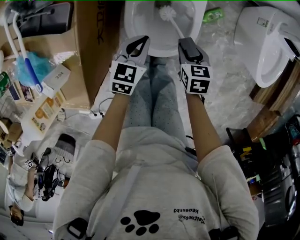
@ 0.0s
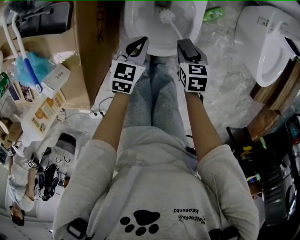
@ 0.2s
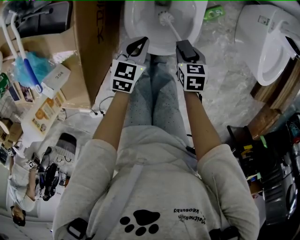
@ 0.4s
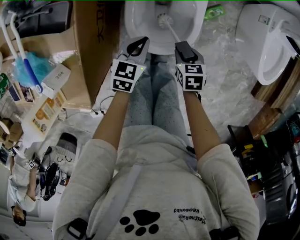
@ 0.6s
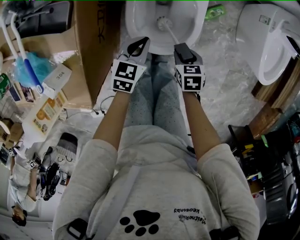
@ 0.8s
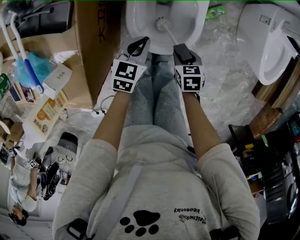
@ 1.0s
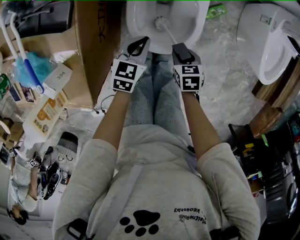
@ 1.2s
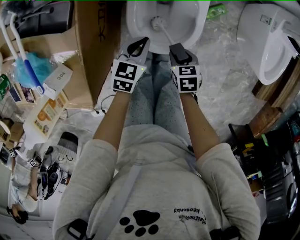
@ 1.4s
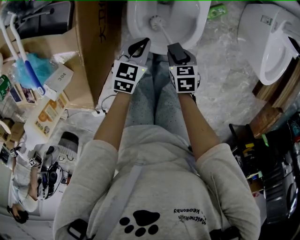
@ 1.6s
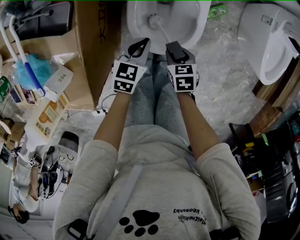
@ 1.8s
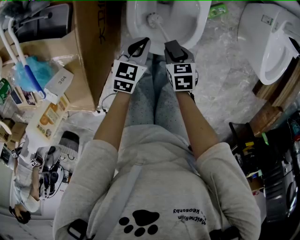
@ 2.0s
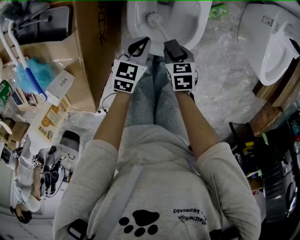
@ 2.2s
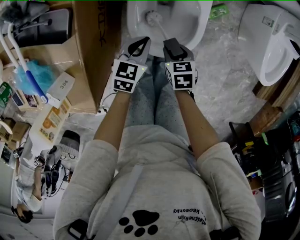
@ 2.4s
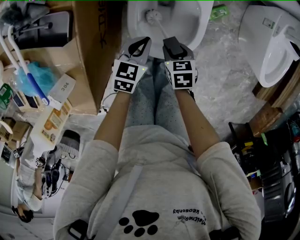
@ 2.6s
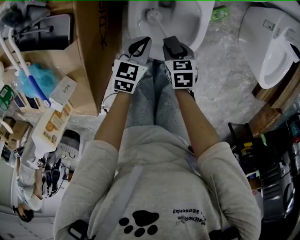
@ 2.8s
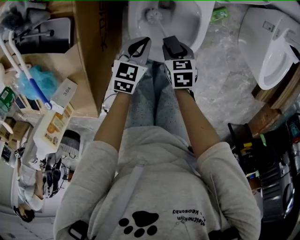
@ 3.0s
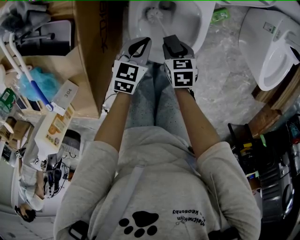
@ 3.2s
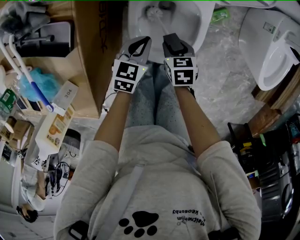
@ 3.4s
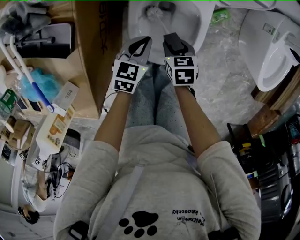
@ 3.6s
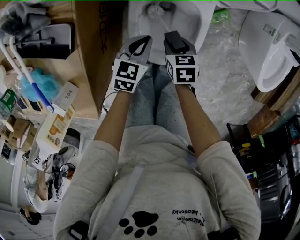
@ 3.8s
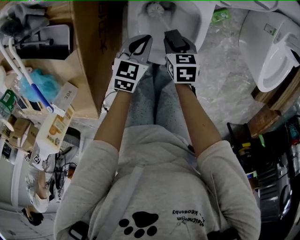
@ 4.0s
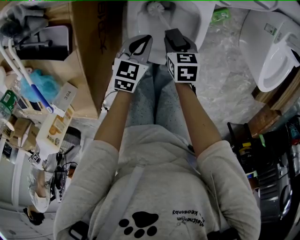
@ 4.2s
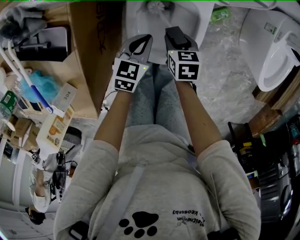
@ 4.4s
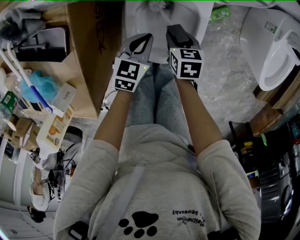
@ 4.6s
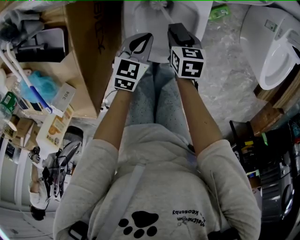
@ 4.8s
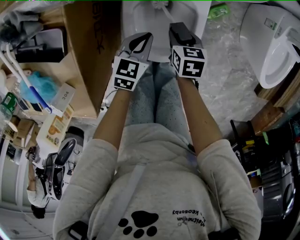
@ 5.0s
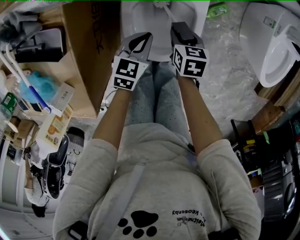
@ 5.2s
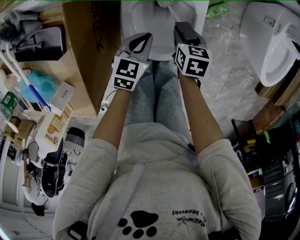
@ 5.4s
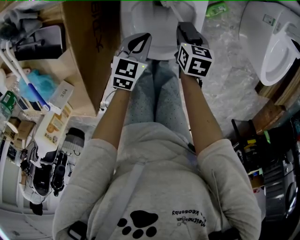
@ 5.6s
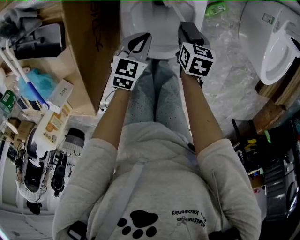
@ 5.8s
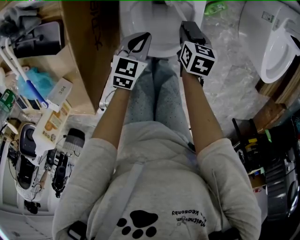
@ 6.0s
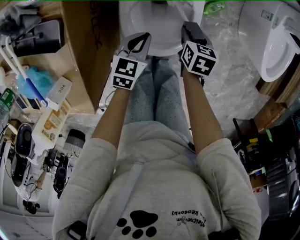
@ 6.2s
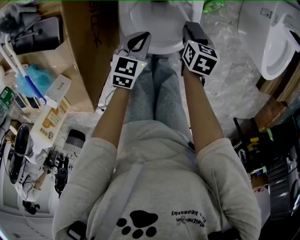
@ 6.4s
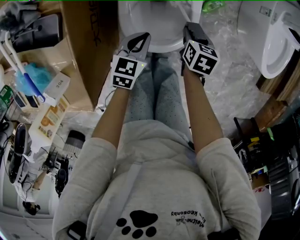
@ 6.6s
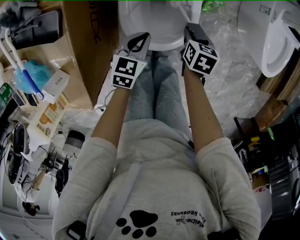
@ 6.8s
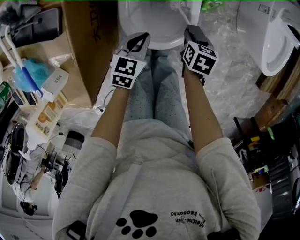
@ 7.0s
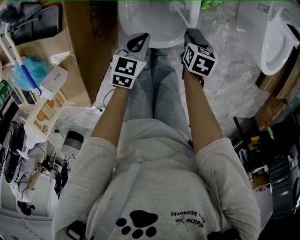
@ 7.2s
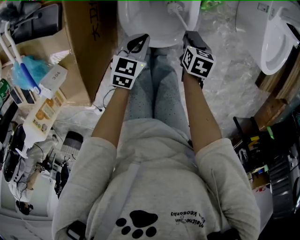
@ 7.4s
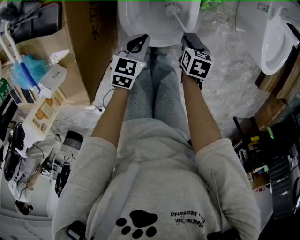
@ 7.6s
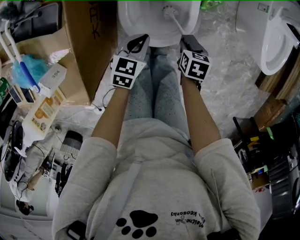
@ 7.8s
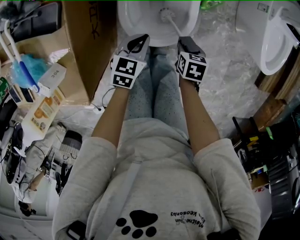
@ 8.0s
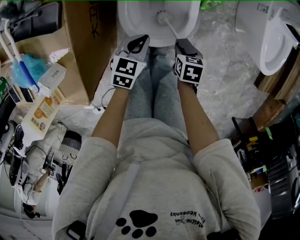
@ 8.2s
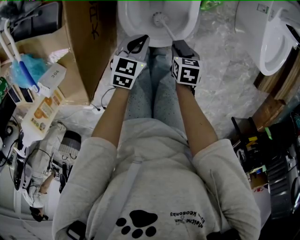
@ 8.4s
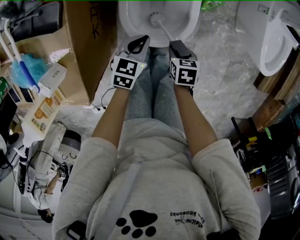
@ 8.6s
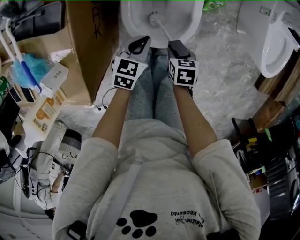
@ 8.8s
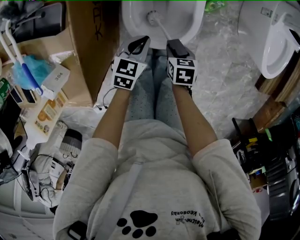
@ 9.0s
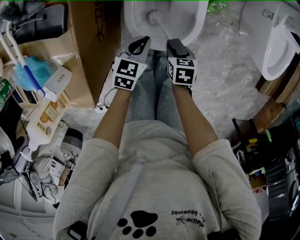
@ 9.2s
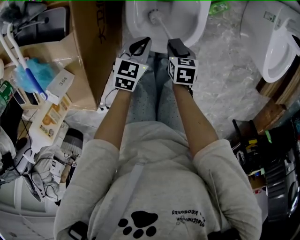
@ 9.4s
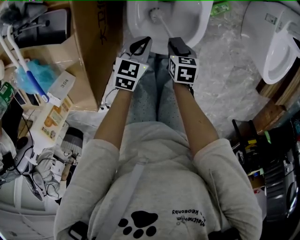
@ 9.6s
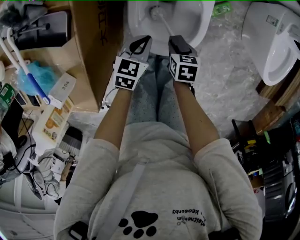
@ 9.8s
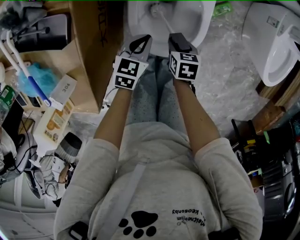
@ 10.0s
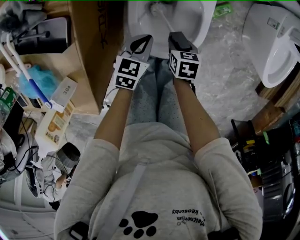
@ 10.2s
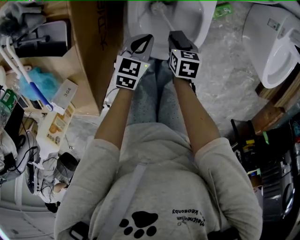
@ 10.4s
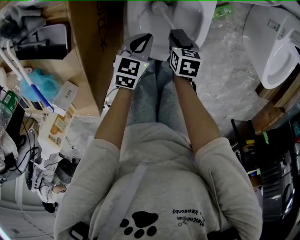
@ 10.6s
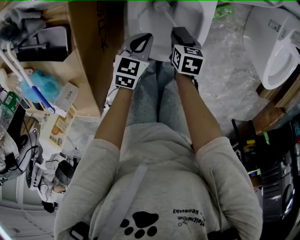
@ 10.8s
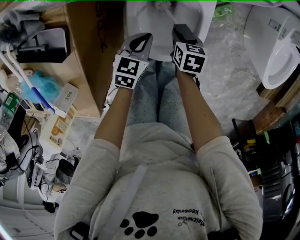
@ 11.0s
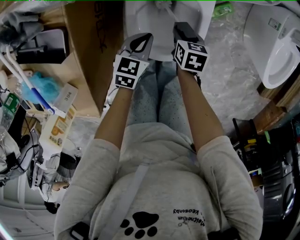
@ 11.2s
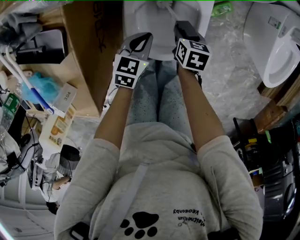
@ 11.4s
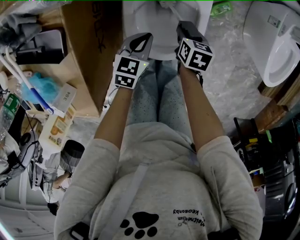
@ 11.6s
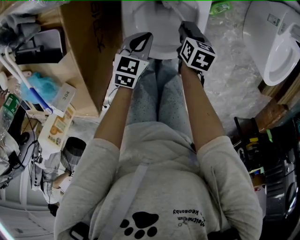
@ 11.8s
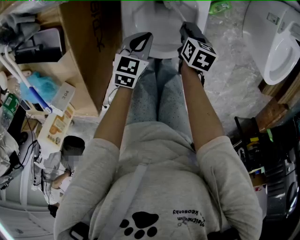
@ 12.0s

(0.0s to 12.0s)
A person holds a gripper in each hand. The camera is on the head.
0.0s - 1.6s: The right gripper is displaced backward and to the left by roughly 10 cm.
1.6s - 3.0s: The right gripper moves forward, roughly 10 cm, while the left gripper is displaced forward by about 5 cm.
3.0s - 4.4s: The right gripper is displaced forward by about 5 cm.
4.4s - 6.0s: The right gripper travels to the right by approximately 10 cm.
6.0s - 7.6s: The right gripper heads backward and to the right, covering about 10 cm; the left gripper travels backward by some 5 cm.
7.6s - 9.0s: The right gripper goes about 5 cm to the left.
9.0s - 10.4s: The two grippers go approximately 10 cm forward.
10.4s - 12.0s: The right gripper moves to the right and forward, approximately 10 cm.

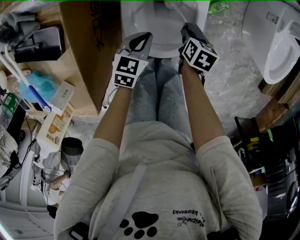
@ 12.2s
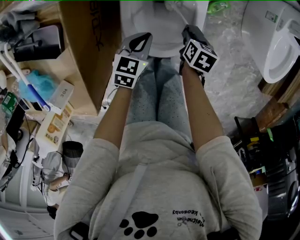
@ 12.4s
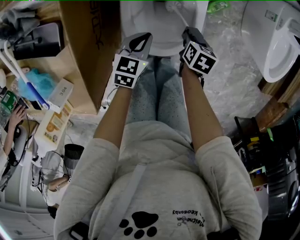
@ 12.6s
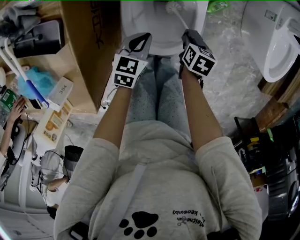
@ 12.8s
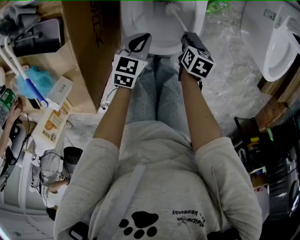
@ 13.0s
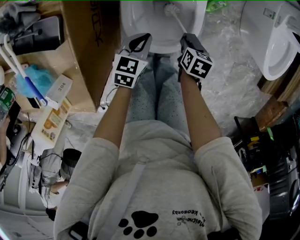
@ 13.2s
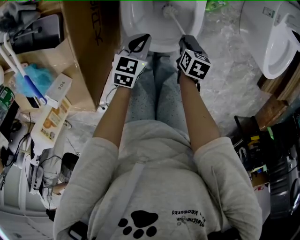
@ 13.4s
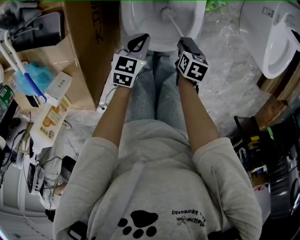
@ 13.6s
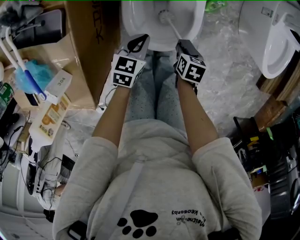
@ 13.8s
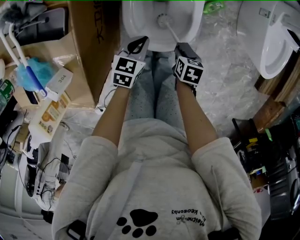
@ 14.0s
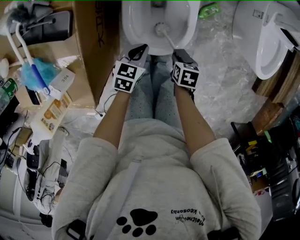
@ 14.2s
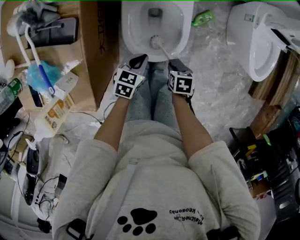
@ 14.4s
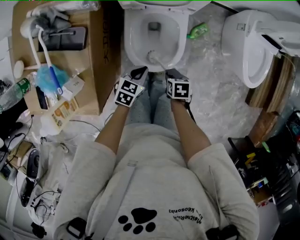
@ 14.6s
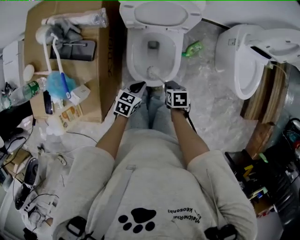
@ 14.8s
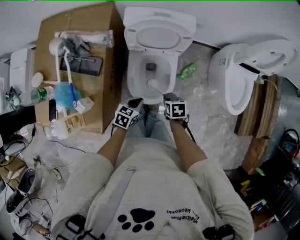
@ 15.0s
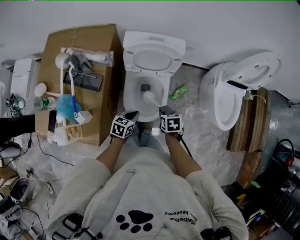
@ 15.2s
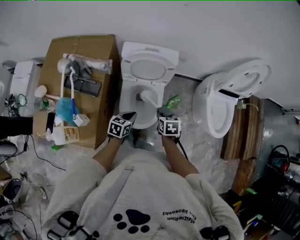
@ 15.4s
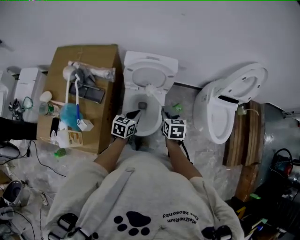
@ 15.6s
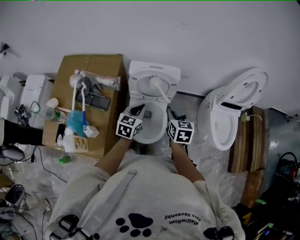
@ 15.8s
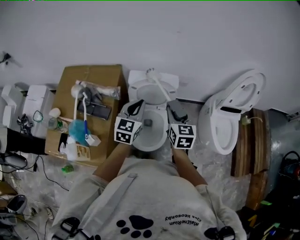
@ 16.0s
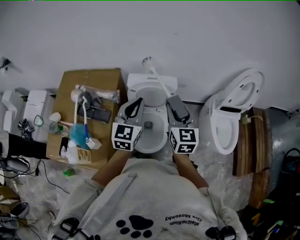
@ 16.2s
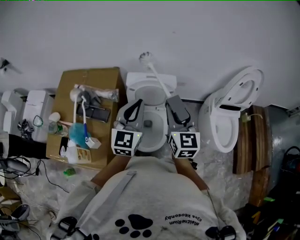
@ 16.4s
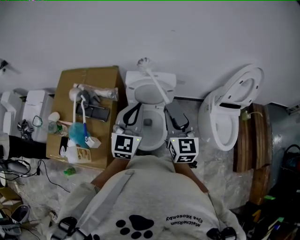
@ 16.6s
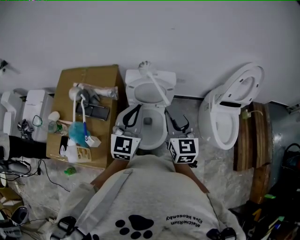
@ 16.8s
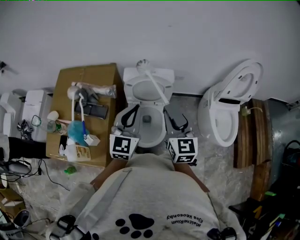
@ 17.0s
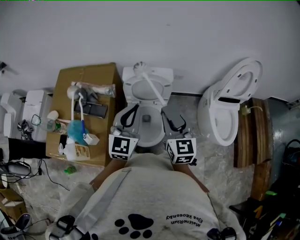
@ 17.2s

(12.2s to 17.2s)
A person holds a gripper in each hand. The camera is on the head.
12.2s - 13.8s: The left gripper heads backward, covering about 5 cm. Meanwhile the right gripper goes approximately 10 cm backward.
13.8s - 15.6s: The grippers both shift upward by about 30 cm. The right gripper turns by roughly 30 degrees.
15.6s - 17.2s: Both grippers move upward, some 25 cm. The left gripper changes its angle by roughly 40 degrees. Meanwhile the right gripper tilts its fingers some 30 degrees upward.

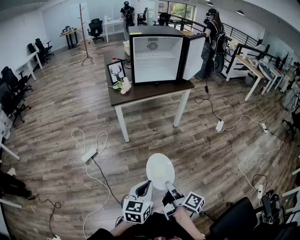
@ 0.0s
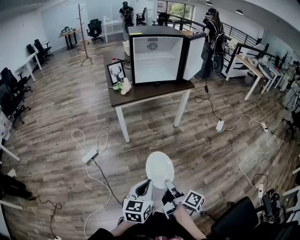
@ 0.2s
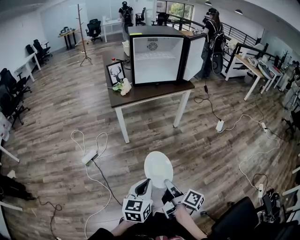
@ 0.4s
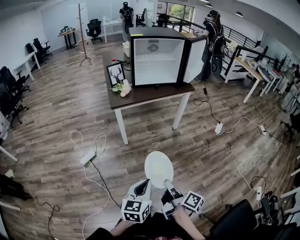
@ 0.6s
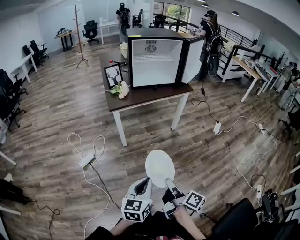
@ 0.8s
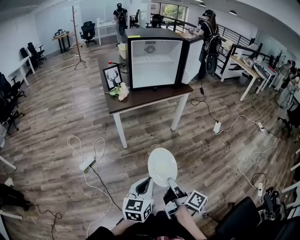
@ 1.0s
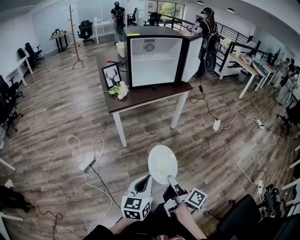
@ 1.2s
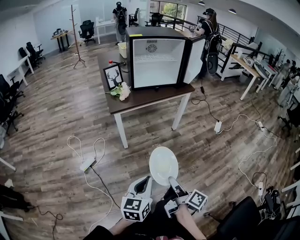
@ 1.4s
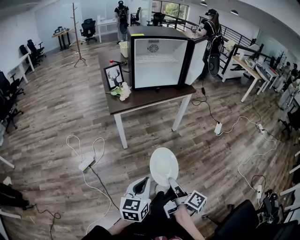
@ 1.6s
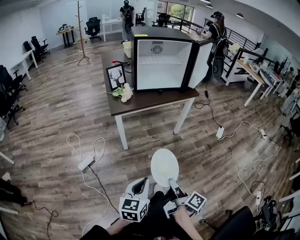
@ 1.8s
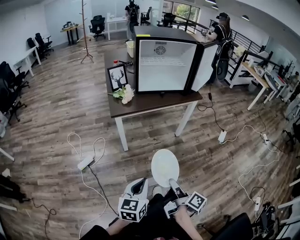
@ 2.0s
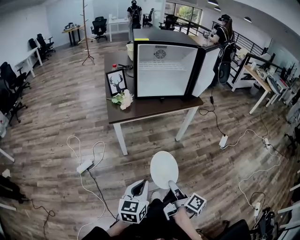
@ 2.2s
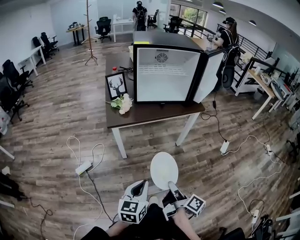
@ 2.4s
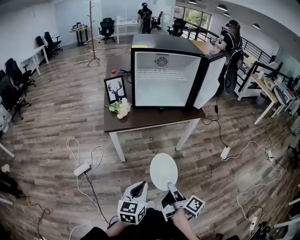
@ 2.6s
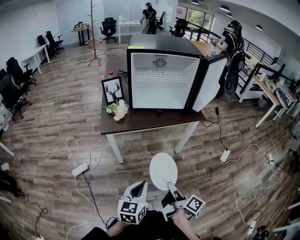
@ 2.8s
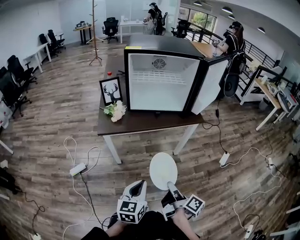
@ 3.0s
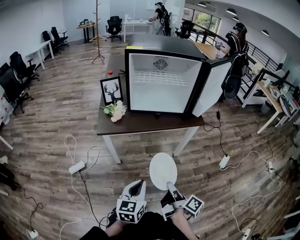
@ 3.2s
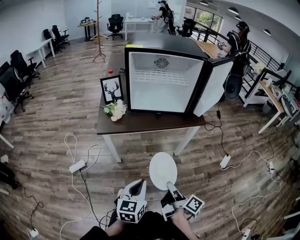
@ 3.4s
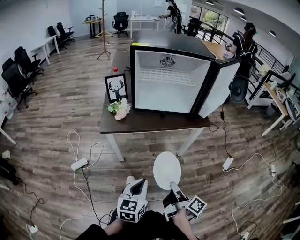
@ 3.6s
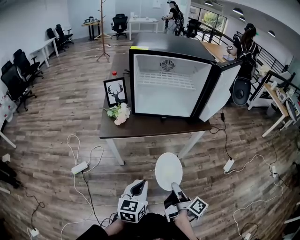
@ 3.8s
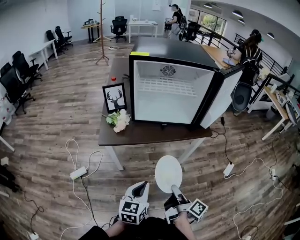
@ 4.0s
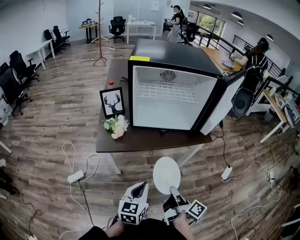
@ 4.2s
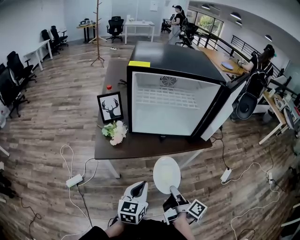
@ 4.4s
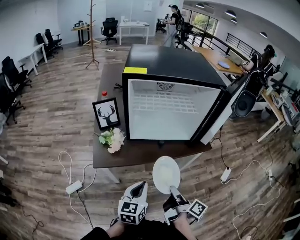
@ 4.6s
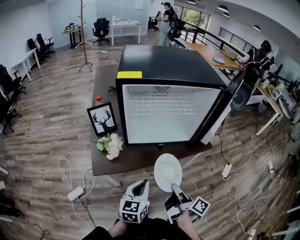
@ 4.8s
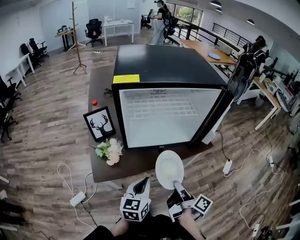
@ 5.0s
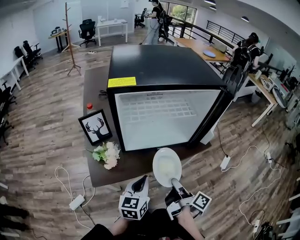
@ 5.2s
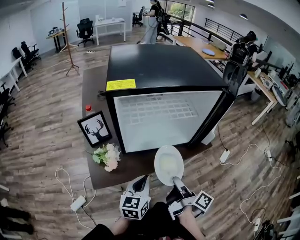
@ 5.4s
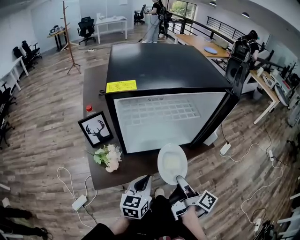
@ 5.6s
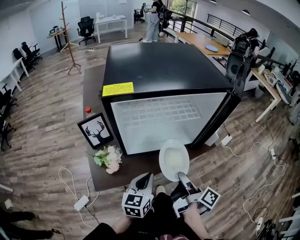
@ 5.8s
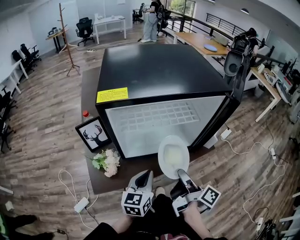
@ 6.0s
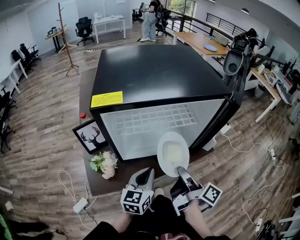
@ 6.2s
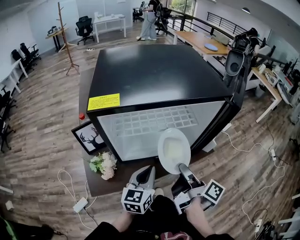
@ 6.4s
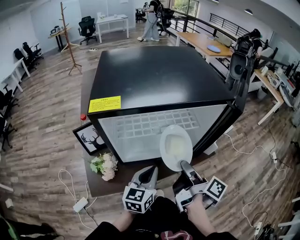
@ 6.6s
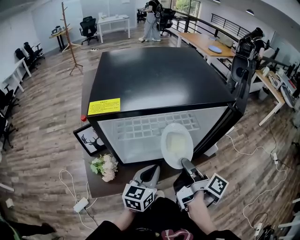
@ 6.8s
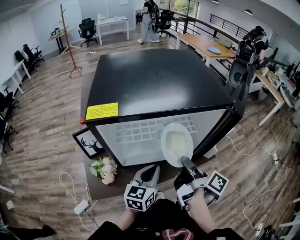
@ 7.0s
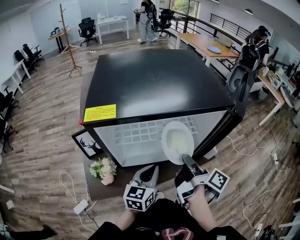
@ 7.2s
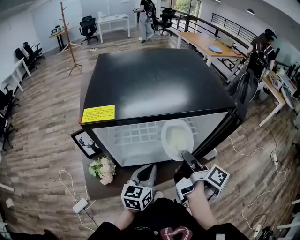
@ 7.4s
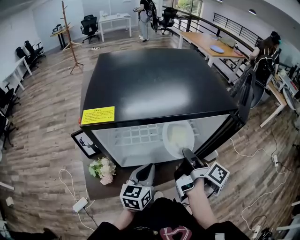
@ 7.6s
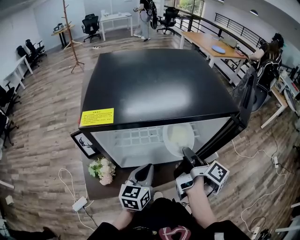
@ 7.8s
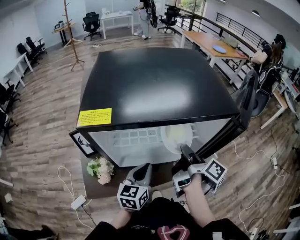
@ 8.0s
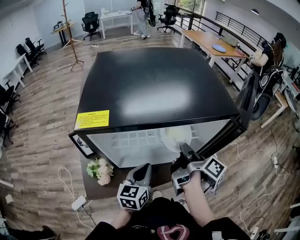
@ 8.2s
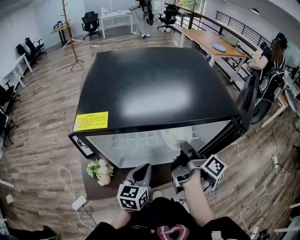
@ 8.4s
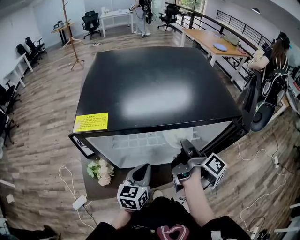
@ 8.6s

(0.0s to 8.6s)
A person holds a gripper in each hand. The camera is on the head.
0.0s - 1.4s: The right gripper moves forward, approximately 10 cm, while the left gripper moves forward and to the left, approximately 10 cm.
1.4s - 2.8s: Both grippers travel together forward and to the right, some 25 cm.
2.8s - 4.4s: Both grippers move forward, about 20 cm.
4.4s - 5.8s: The two grippers go some 15 cm forward.
5.8s - 7.2s: The left gripper heads forward, covering about 10 cm; the right gripper goes approximately 15 cm forward and upward.
7.2s - 8.6s: The right gripper goes roughly 10 cm forward.
